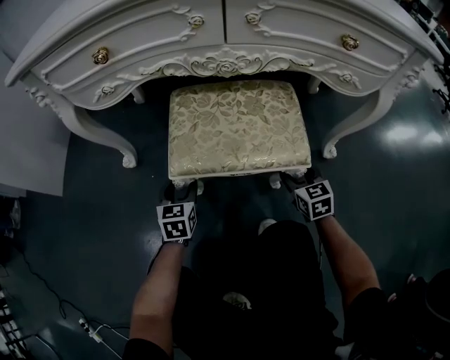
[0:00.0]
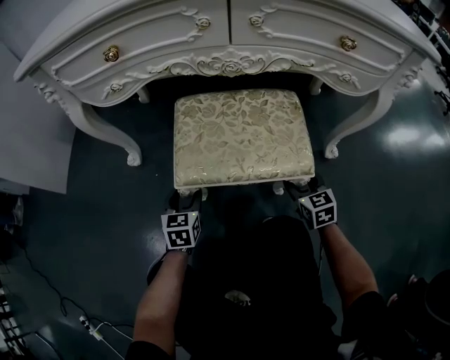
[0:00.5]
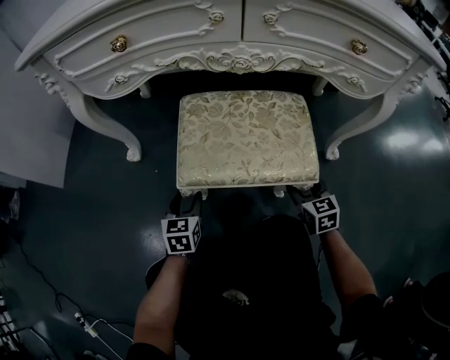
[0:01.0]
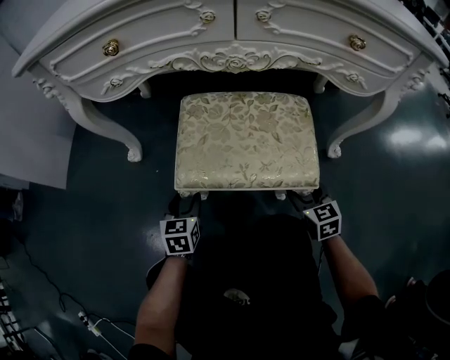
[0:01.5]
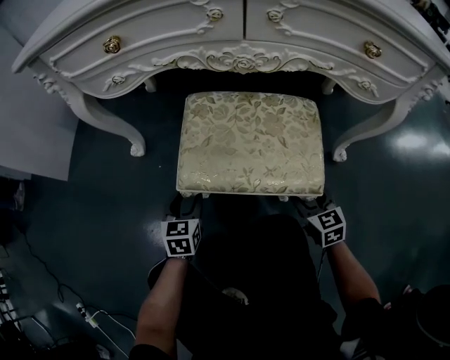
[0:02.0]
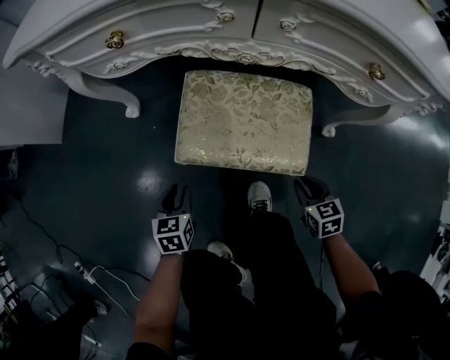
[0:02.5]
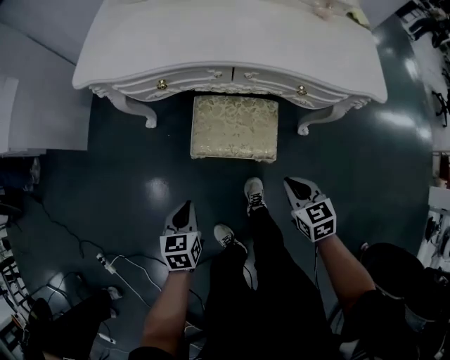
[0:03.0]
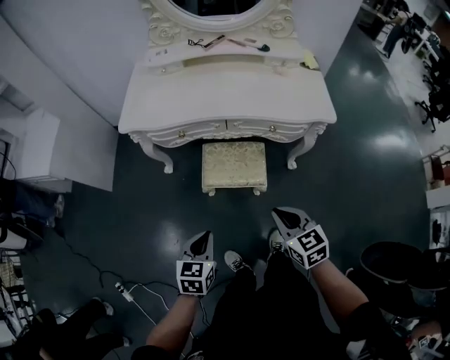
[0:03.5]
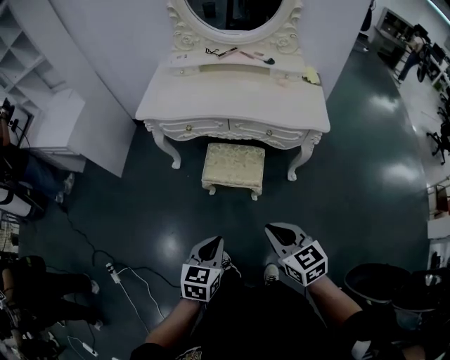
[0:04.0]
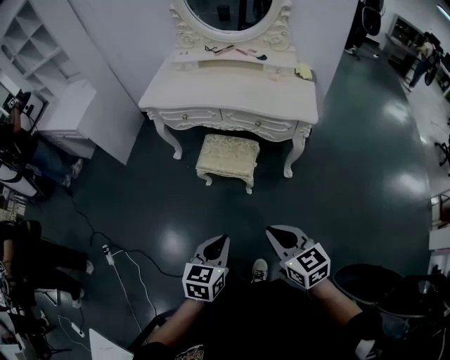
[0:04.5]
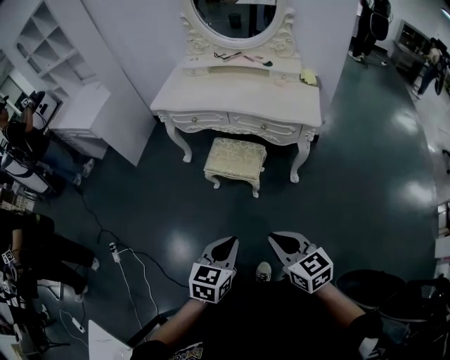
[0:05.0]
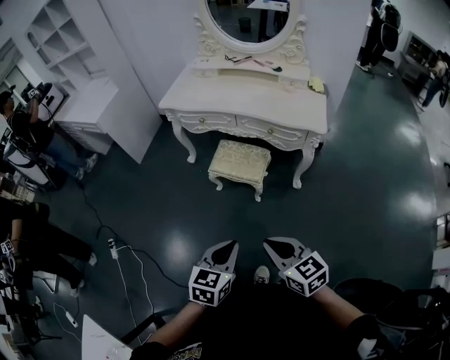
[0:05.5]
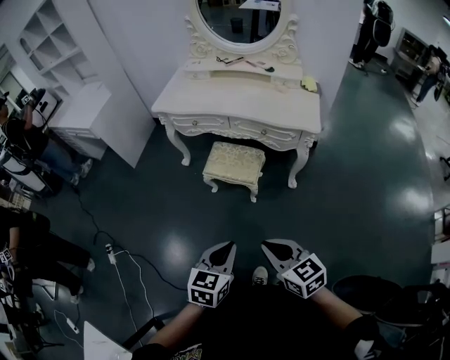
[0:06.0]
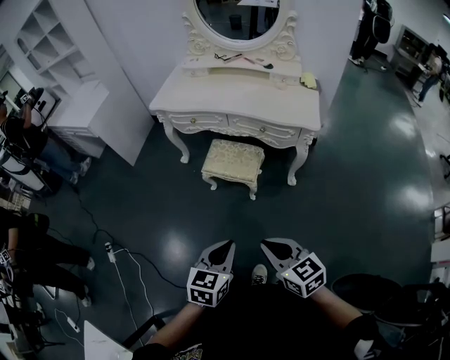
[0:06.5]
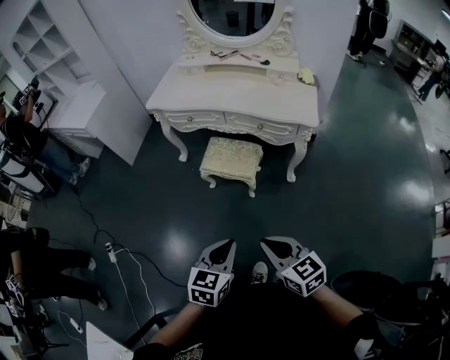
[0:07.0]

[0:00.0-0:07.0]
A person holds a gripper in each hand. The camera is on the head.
0:00.0 to 0:02.0: Both grippers travel together backward, approximately 5 cm.
0:02.0 to 0:03.5: The left gripper moves upward and backward, some 60 cm, and closes, while the right gripper is displaced upward by roughly 60 cm, and closes.
0:03.5 to 0:05.0: The right gripper heads backward and to the right, covering roughly 30 cm, and turns by approximately 20 degrees. The left gripper travels backward, to the right and upward by roughly 35 cm.
0:05.0 to 0:07.0: The grippers move only a little.

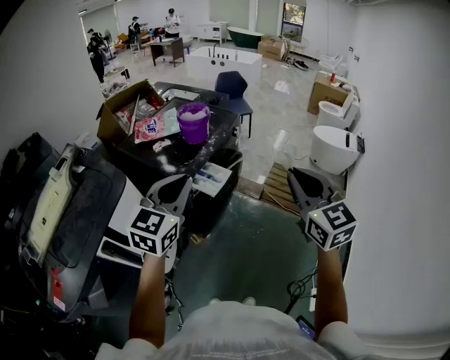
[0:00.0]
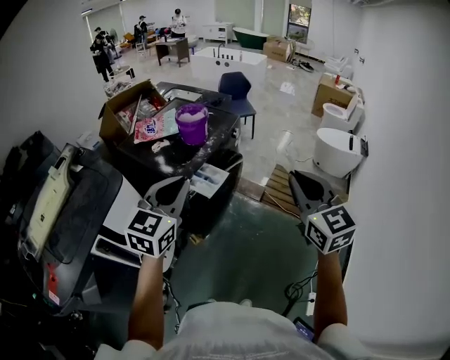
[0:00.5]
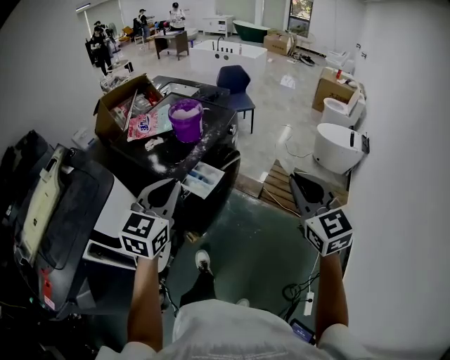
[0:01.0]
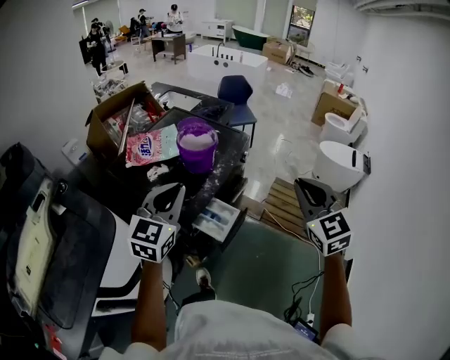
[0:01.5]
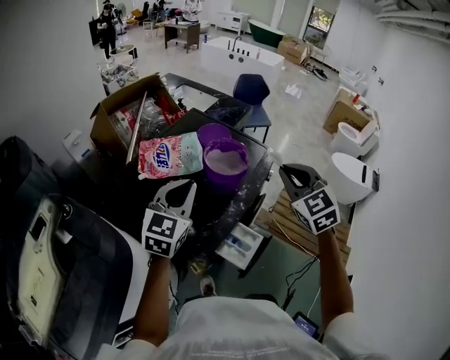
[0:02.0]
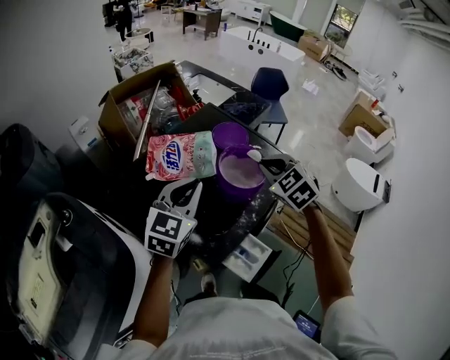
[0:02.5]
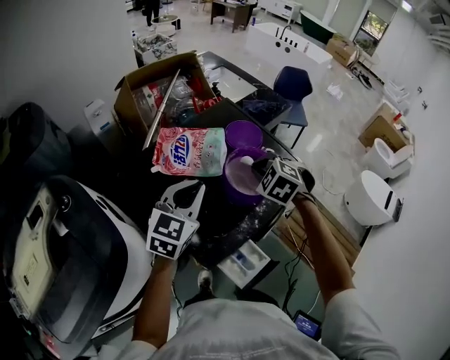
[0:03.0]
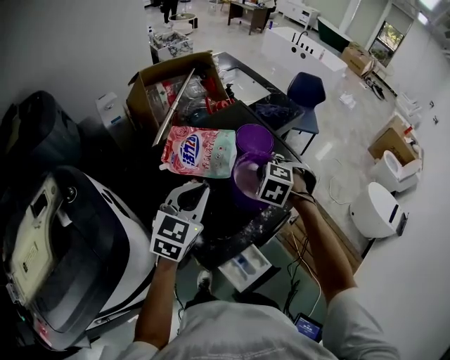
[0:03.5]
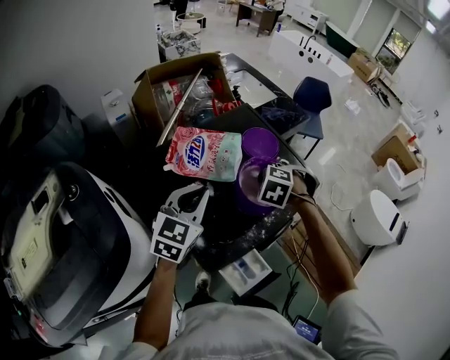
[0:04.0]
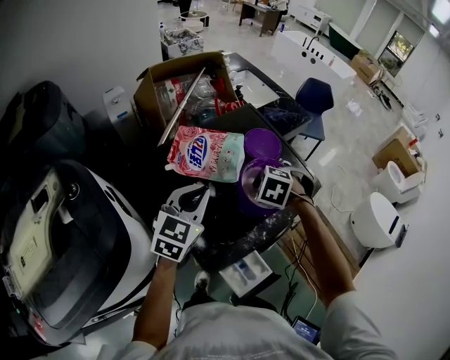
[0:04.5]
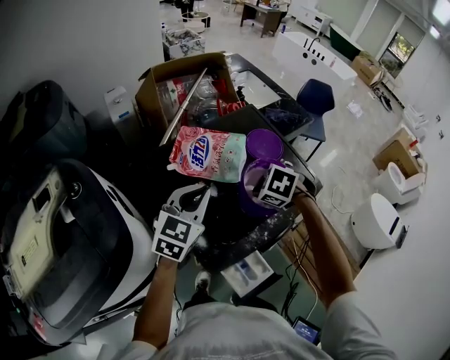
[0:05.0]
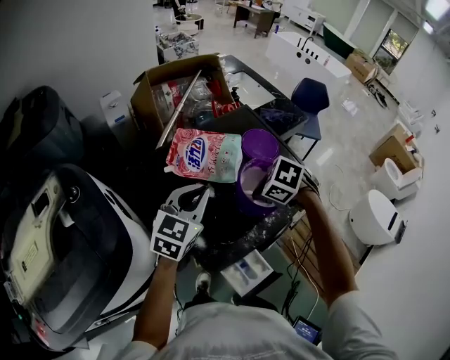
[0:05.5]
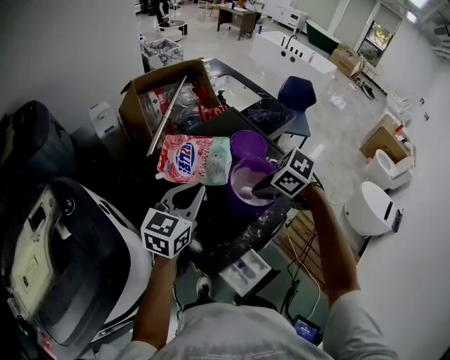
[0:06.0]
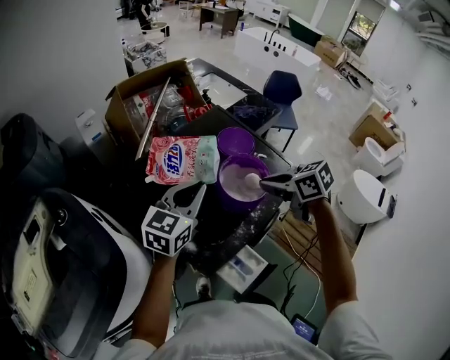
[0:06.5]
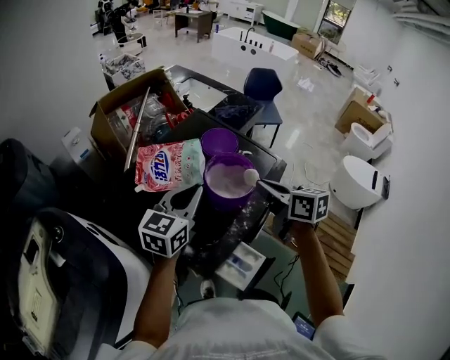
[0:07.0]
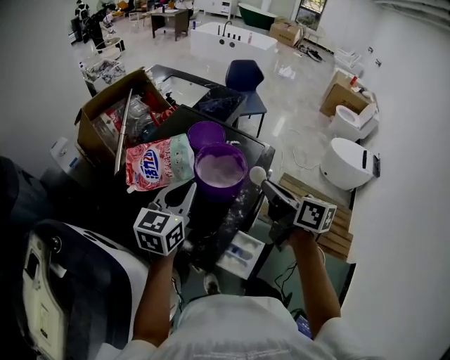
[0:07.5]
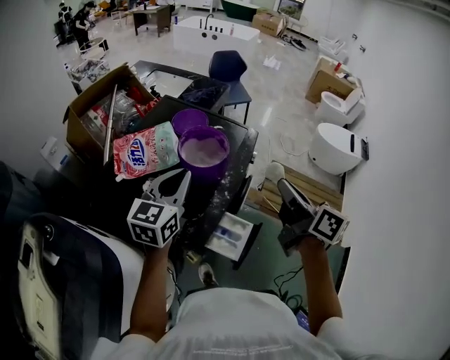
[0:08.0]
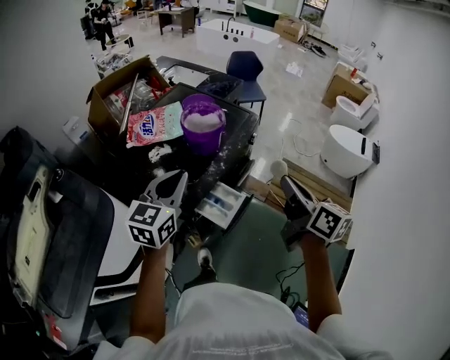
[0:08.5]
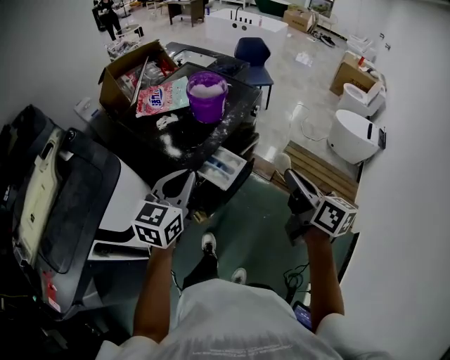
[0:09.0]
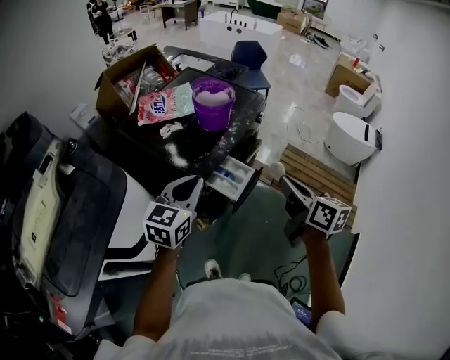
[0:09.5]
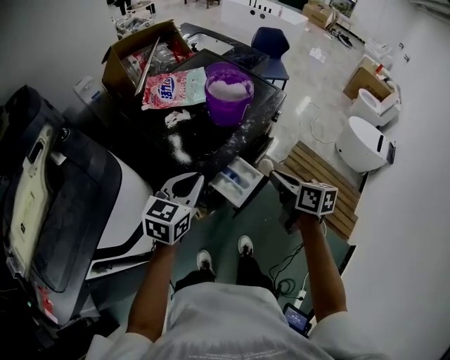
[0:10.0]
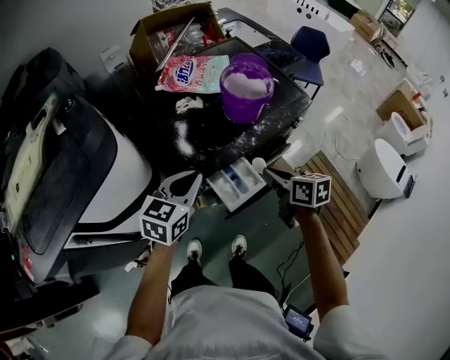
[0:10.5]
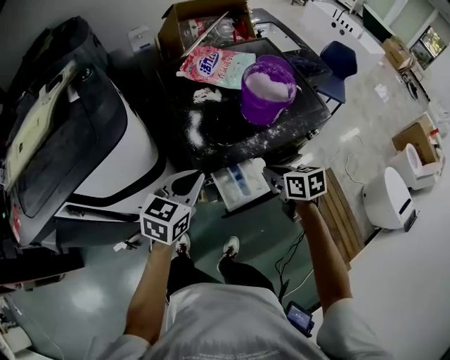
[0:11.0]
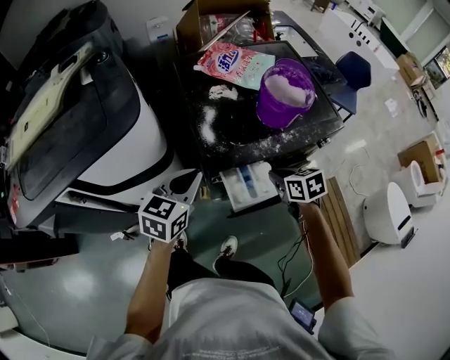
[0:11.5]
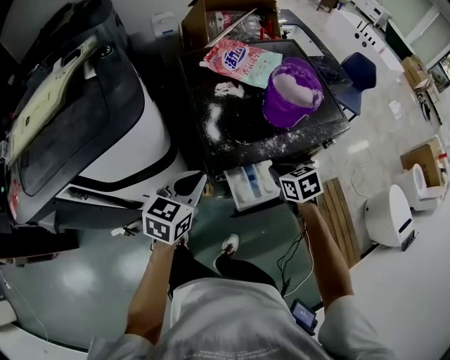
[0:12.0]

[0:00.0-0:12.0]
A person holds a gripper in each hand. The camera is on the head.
0:00.0 to 0:02.0: The right gripper goes roughly 40 cm forward, and swivels roughly 30 degrees; the left gripper is displaced forward and to the left by about 40 cm.
0:02.0 to 0:04.0: The right gripper heads downward, forward and to the left, covering approximately 30 cm, and tilts its fingers roughly 50 degrees downward. Meanwhile the left gripper travels forward and downward by roughly 10 cm.
0:04.0 to 0:06.0: The right gripper moves about 5 cm, and rotates approximately 50 degrees.
0:06.0 to 0:08.0: The left gripper changes place by roughly 10 cm. The right gripper ends up approximately 25 cm from where it was, and tips its fingers upward by approximately 50 degrees.
0:08.0 to 0:10.0: The right gripper is displaced downward and backward by some 20 cm, and swivels roughly 30 degrees. Meanwhile the left gripper shifts about 20 cm backward and downward.
0:10.0 to 0:12.0: The left gripper shifts about 5 cm downward, and rotates some 30 degrees; the right gripper heads downward, covering some 15 cm, and changes its angle by roughly 60 degrees.

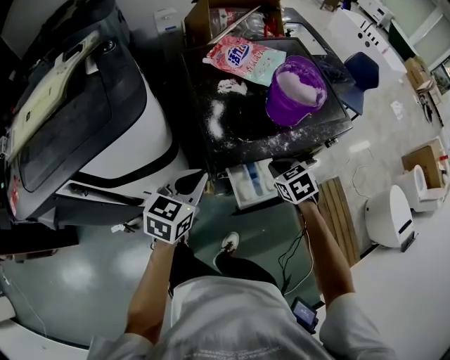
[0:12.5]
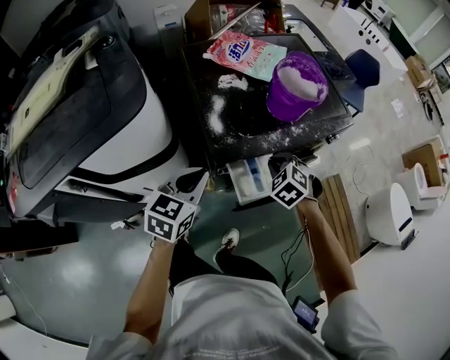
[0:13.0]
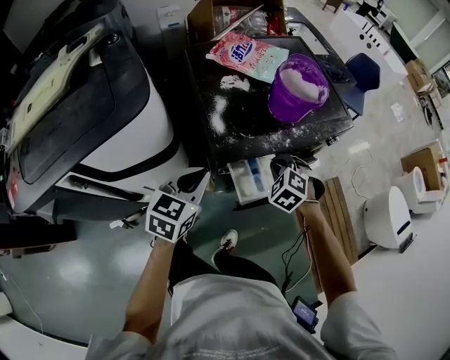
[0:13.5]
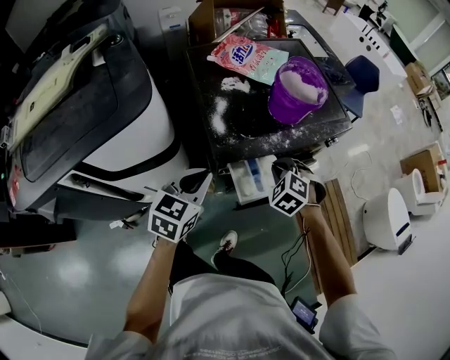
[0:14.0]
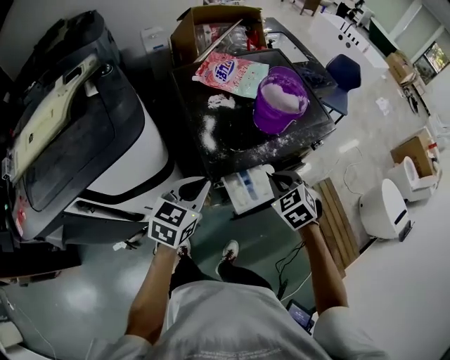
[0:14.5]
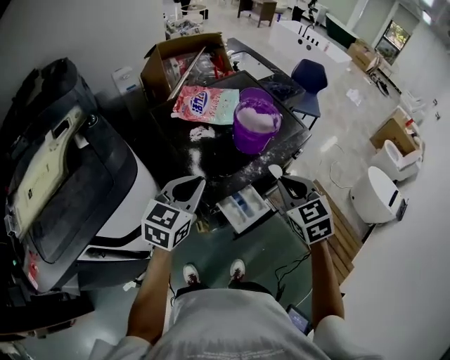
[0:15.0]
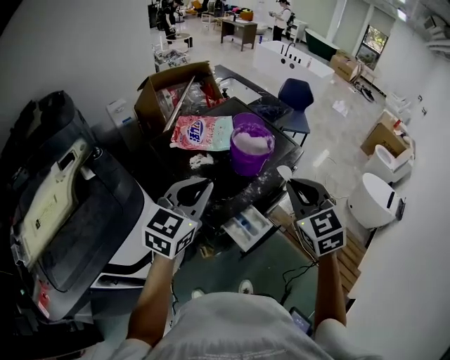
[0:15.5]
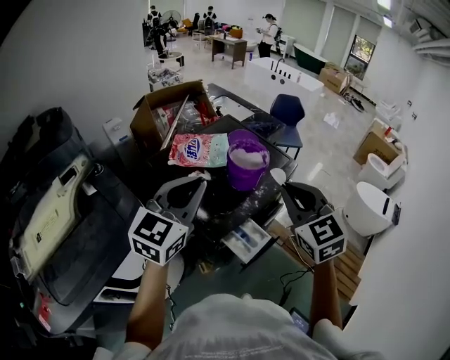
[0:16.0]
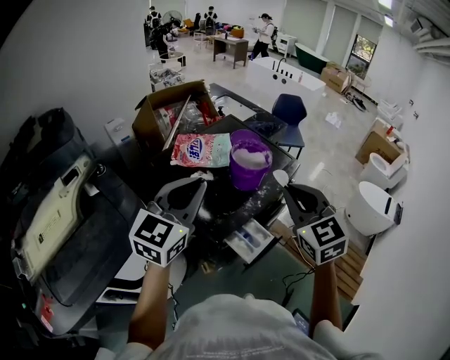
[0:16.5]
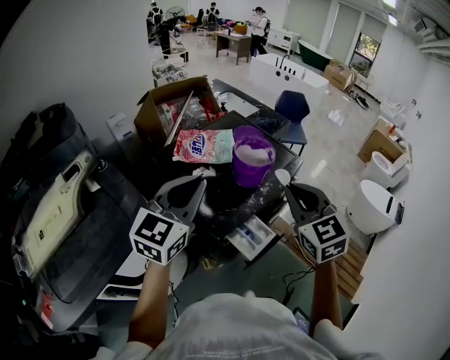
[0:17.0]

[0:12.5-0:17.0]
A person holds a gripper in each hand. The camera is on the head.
0:12.5 to 0:14.5: The right gripper travels upward by about 10 cm.
0:14.5 to 0:17.0: Both grippers move upward, roughly 25 cm. The left gripper changes its angle by about 30 degrees. Meanwhile the right gripper tilts its fingers roughly 30 degrees upward.

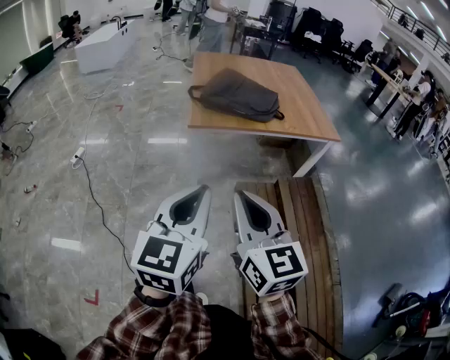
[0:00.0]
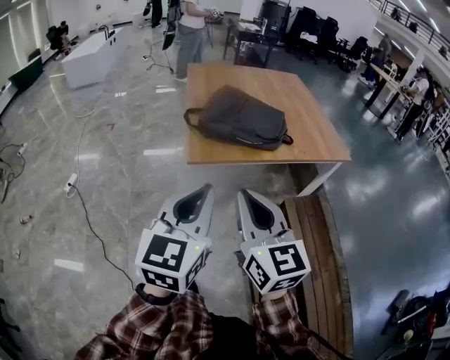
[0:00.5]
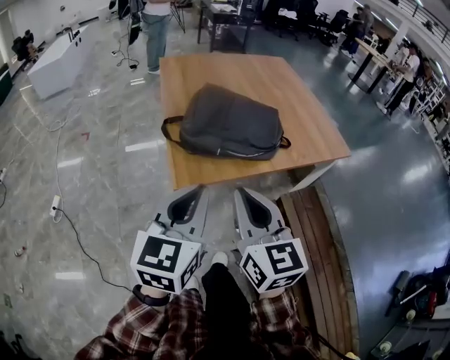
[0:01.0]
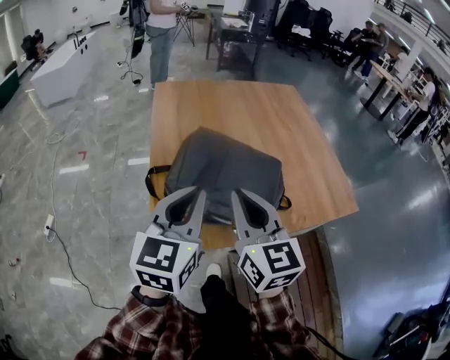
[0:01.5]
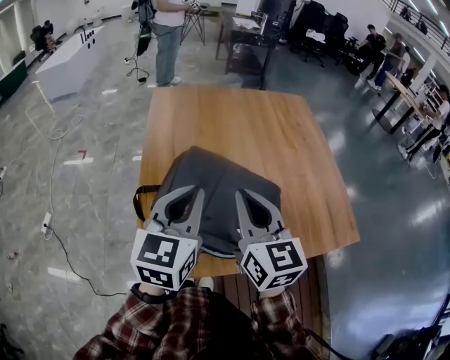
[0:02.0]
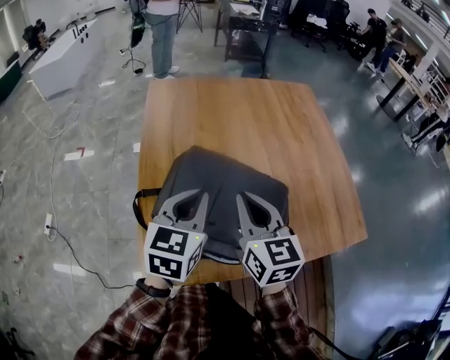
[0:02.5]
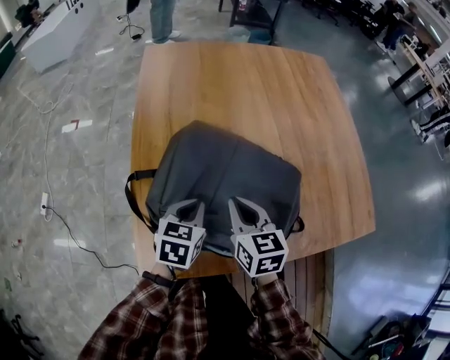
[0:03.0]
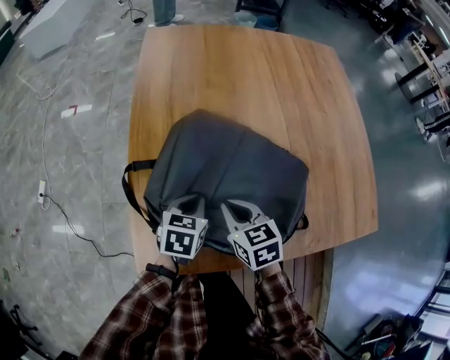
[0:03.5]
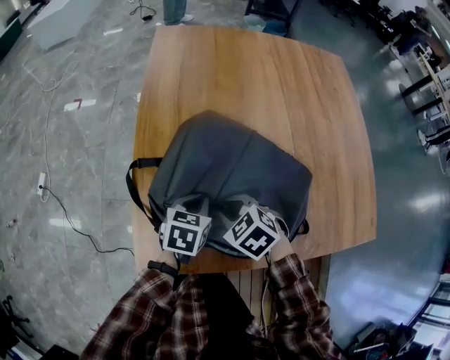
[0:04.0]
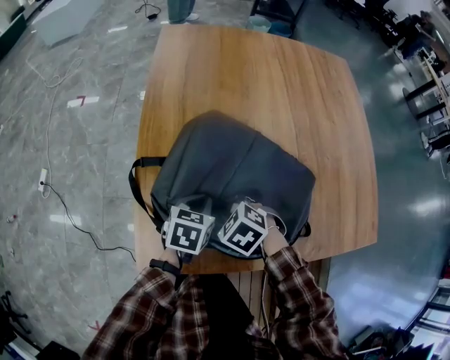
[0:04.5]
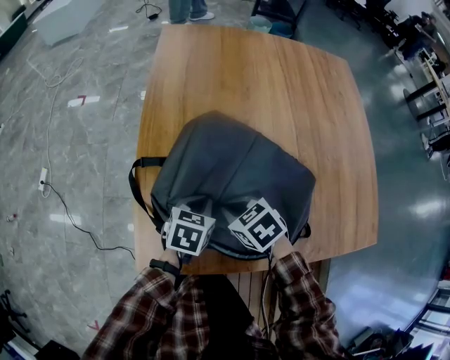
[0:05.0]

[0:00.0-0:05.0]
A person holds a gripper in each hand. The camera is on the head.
0:00.0 to 0:02.5: The two grippers travel together, forward, roughly 80 cm.
0:02.5 to 0:05.0: The grippers both shift downward by approximately 25 cm. The right gripper points its fingers roughly 50 degrees further downward. Meanwhile the left gripper rotates about 30 degrees.
